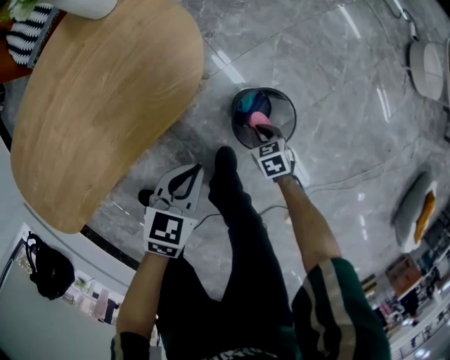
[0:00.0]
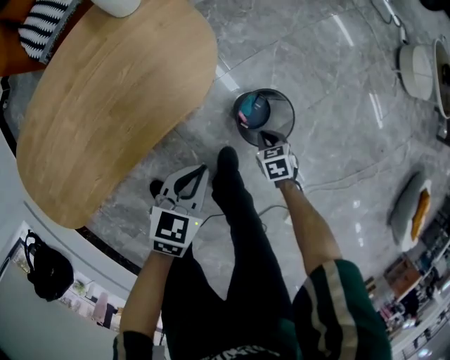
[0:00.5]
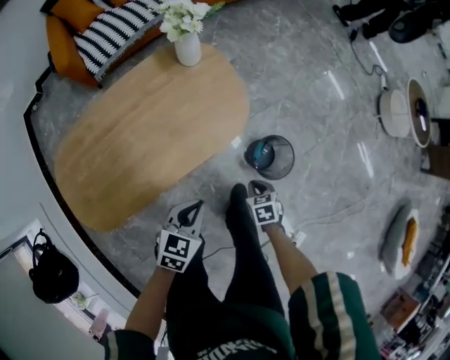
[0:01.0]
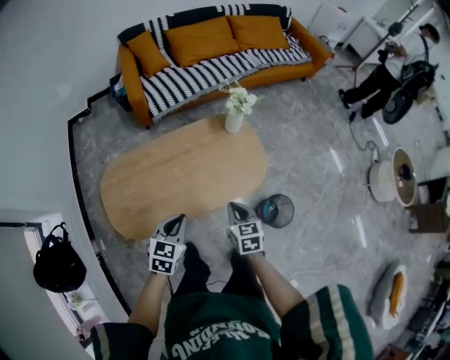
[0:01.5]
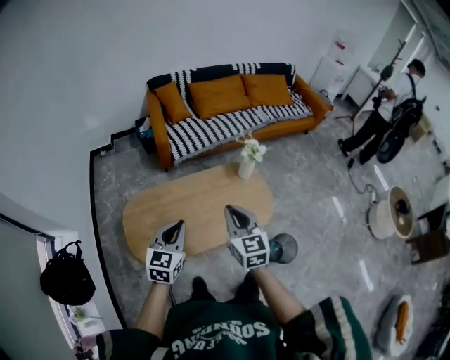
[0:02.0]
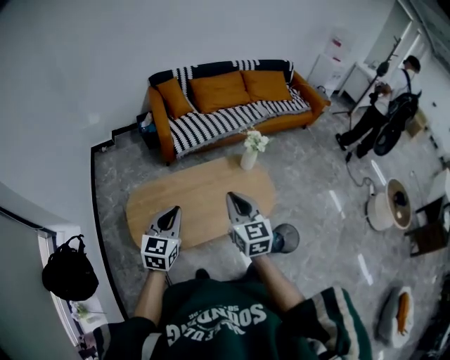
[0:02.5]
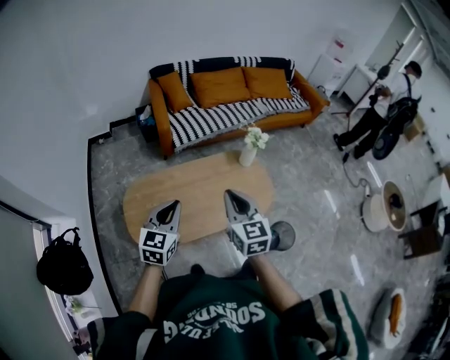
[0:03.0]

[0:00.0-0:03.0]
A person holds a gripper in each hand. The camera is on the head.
0:00.0 to 0:01.5: The left gripper goes roughly 40 cm to the left and upward, and changes its angle by approximately 30 degrees. Meanwhile the right gripper moves upward and to the left, roughly 60 cm, and turns by about 30 degrees.
0:01.5 to 0:03.0: The grippers both shift upward and to the left by some 25 cm. The right gripper changes its angle by approximately 30 degrees. Meanwhile the left gripper rotates some 20 degrees.

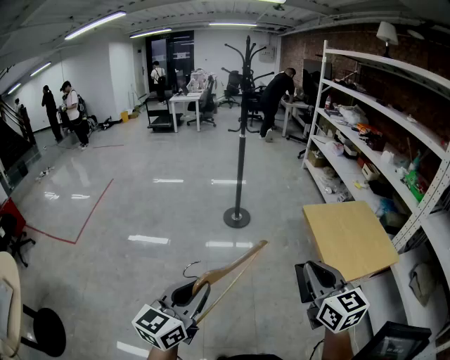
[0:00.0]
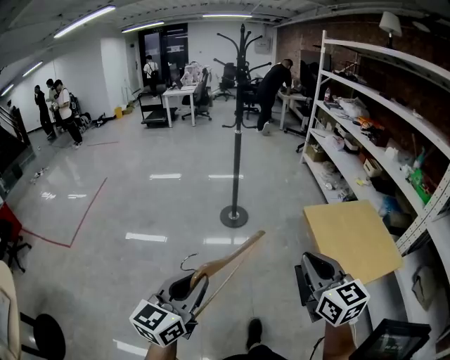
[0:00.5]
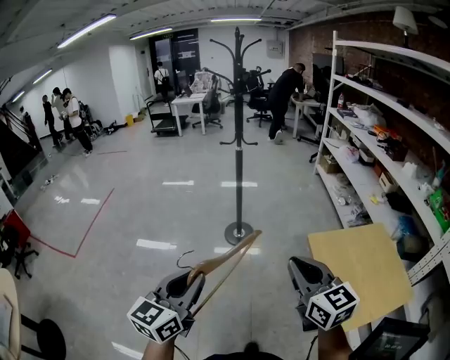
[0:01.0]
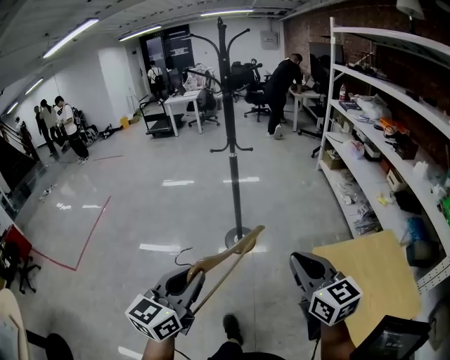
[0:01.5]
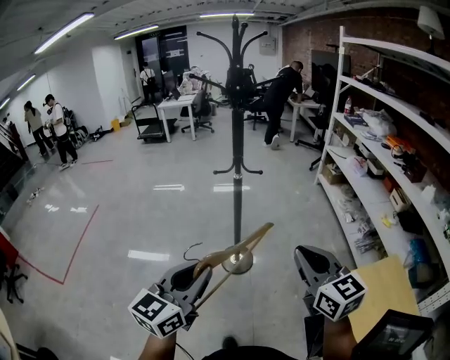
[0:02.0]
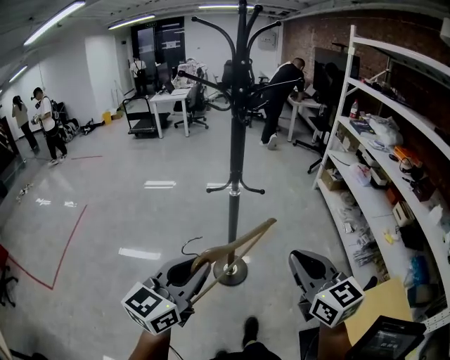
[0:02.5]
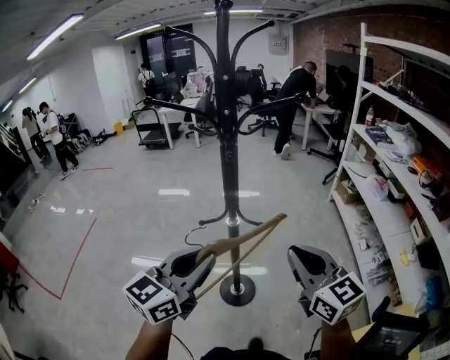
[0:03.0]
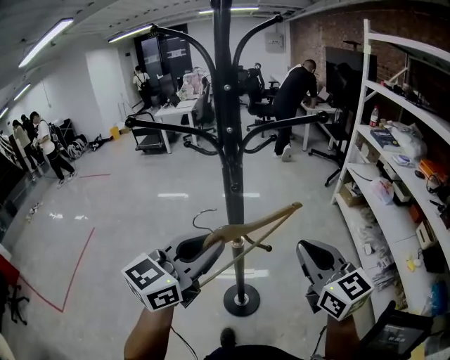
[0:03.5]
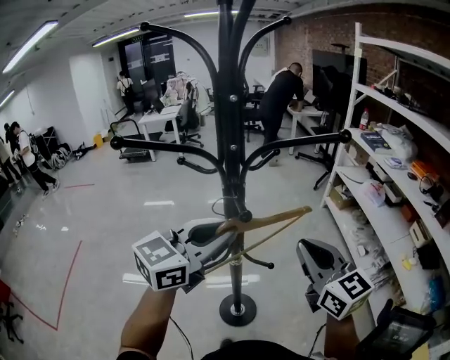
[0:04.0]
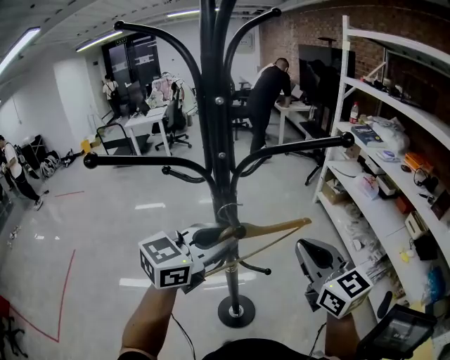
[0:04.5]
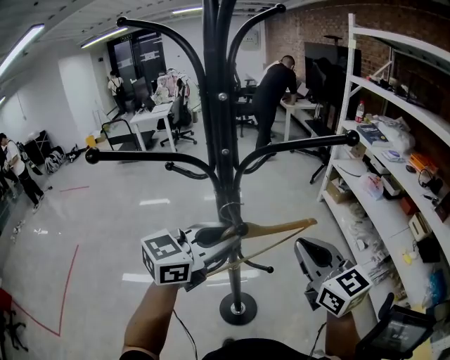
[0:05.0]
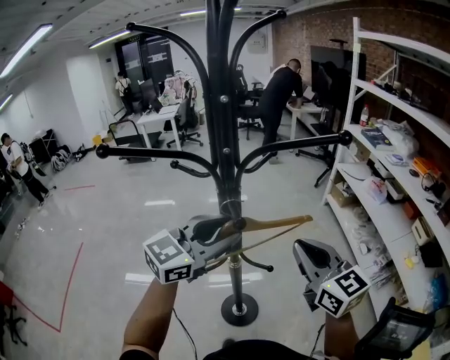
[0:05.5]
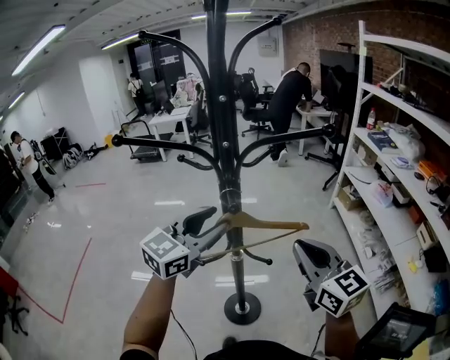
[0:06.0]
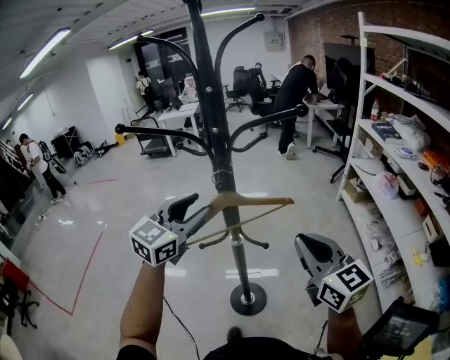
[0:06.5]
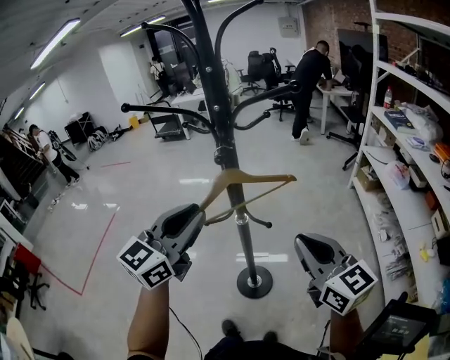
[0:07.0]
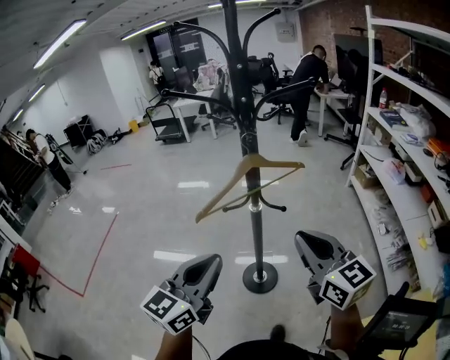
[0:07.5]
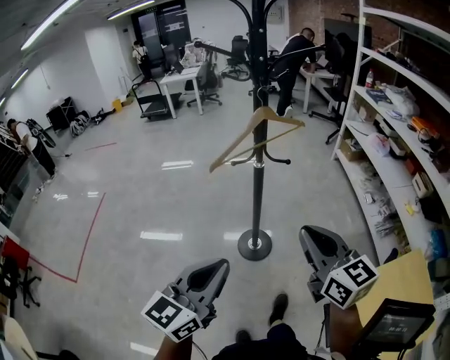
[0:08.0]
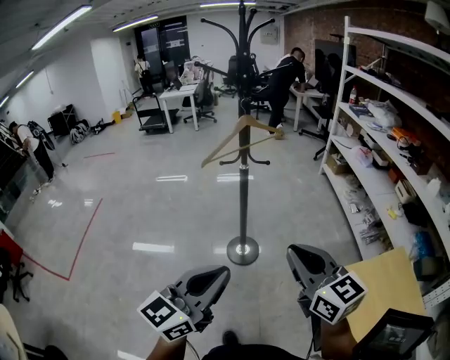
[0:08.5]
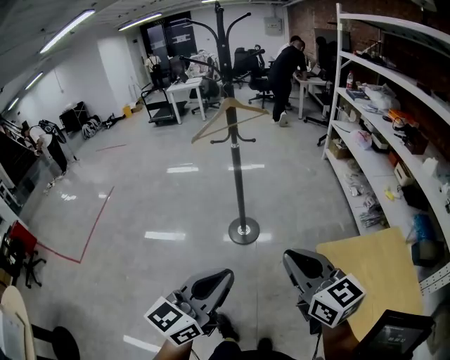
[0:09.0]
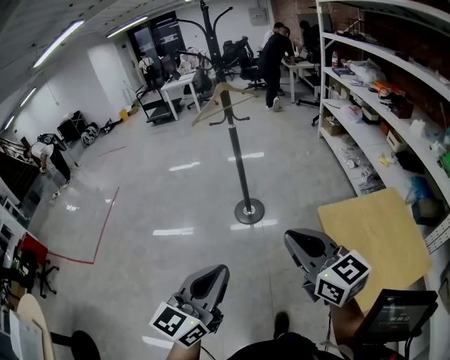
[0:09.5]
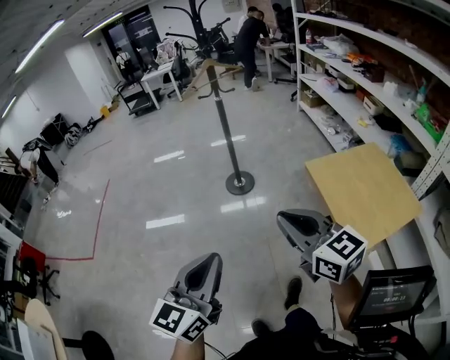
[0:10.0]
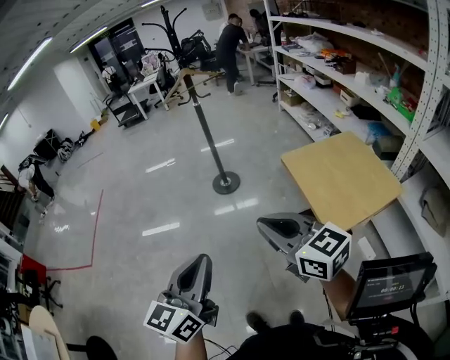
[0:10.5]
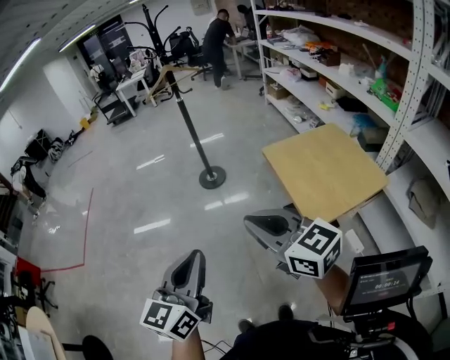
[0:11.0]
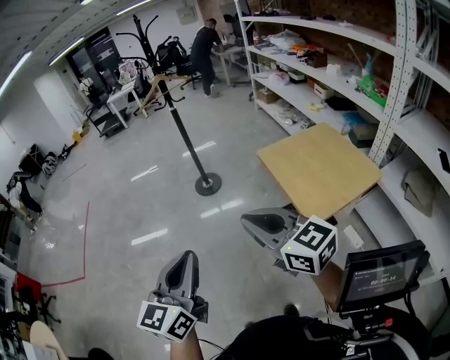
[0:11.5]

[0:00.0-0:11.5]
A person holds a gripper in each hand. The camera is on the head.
0:00.0 to 0:02.0: The two grippers travel together, forward, about 50 cm.
0:02.0 to 0:04.0: The two grippers go about 40 cm forward. The left gripper swivels roughly 20 degrees.
0:04.0 to 0:06.0: The left gripper ends up about 5 cm from where it was, and opens up.
0:06.0 to 0:07.5: The left gripper travels backward by approximately 25 cm, turns by about 20 degrees, and closes its fingers, while the right gripper is displaced backward by approximately 15 cm.
0:07.5 to 0:09.5: Both grippers are carried backward, about 50 cm.
0:09.5 to 0:11.5: Both grippers travel together backward, some 25 cm.

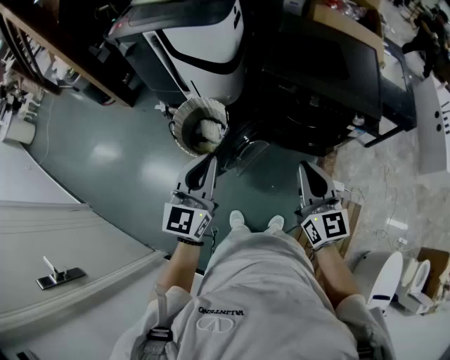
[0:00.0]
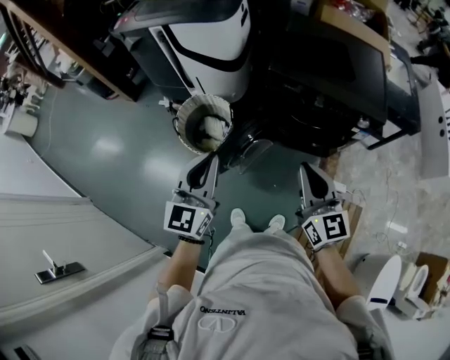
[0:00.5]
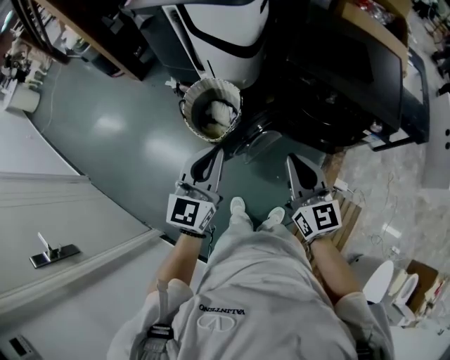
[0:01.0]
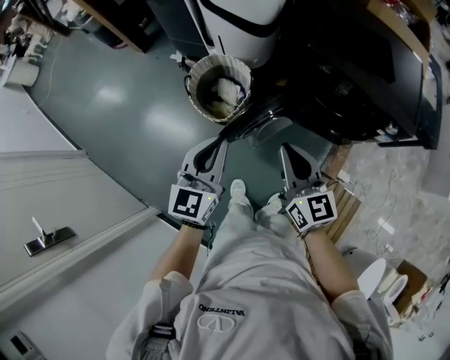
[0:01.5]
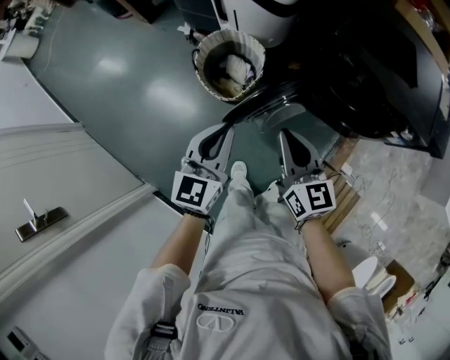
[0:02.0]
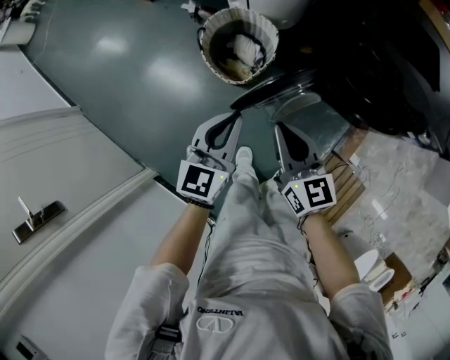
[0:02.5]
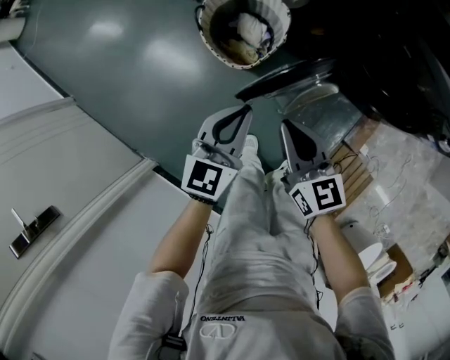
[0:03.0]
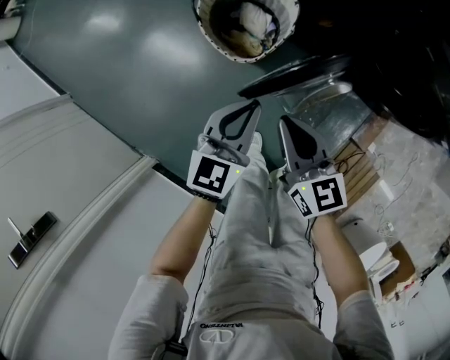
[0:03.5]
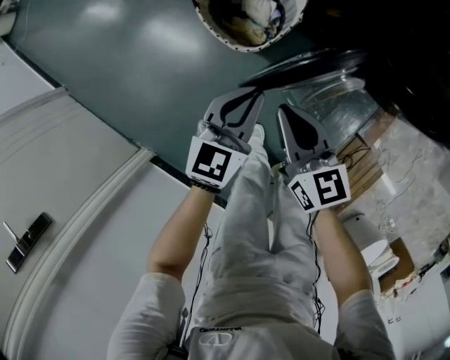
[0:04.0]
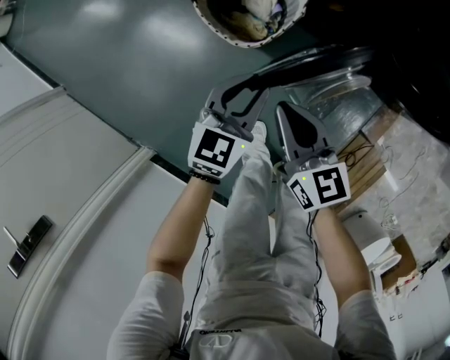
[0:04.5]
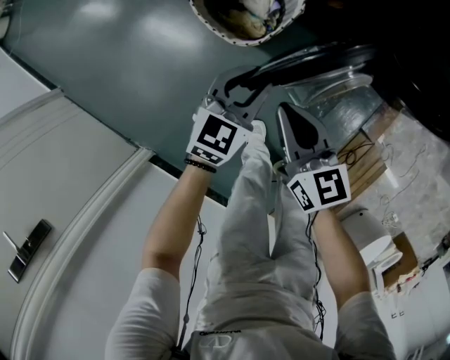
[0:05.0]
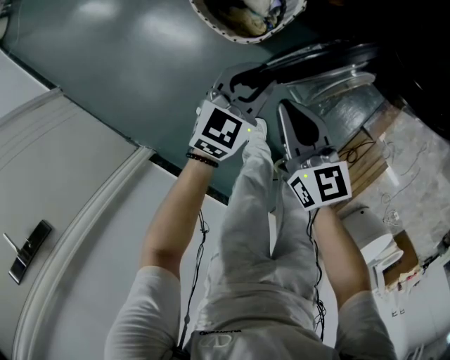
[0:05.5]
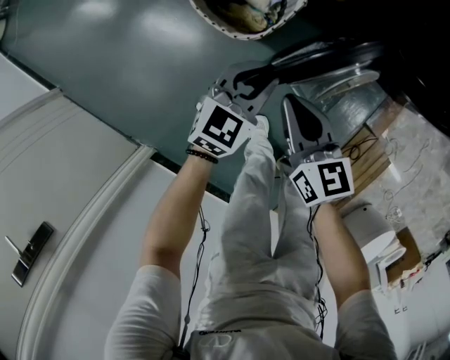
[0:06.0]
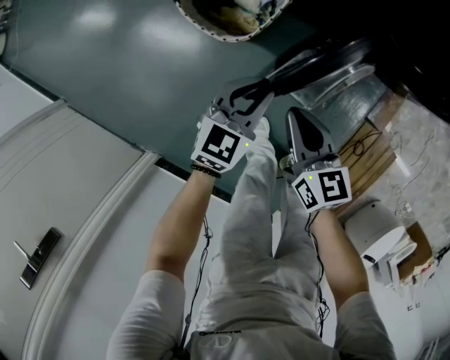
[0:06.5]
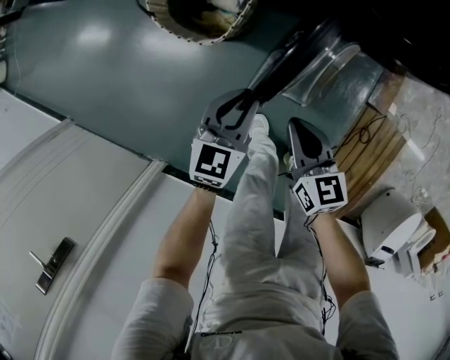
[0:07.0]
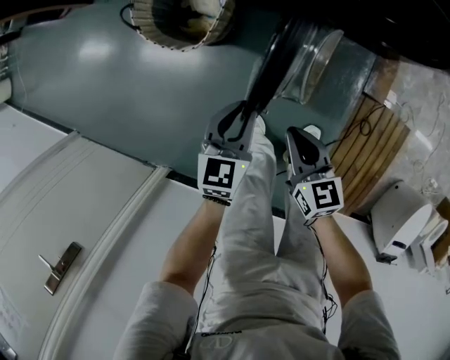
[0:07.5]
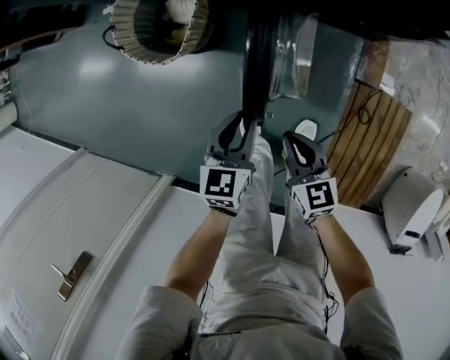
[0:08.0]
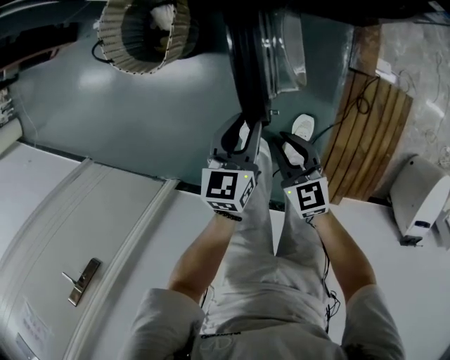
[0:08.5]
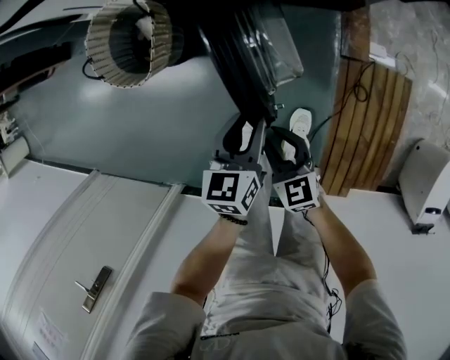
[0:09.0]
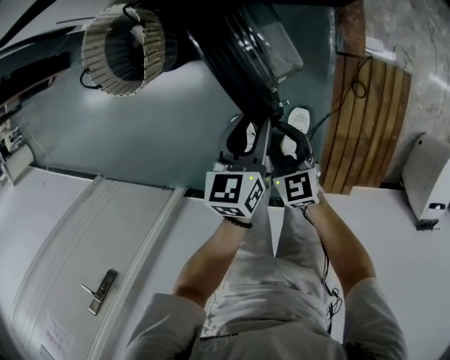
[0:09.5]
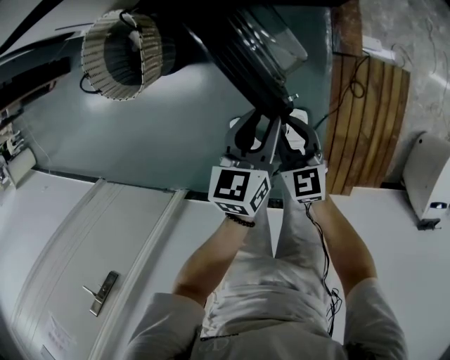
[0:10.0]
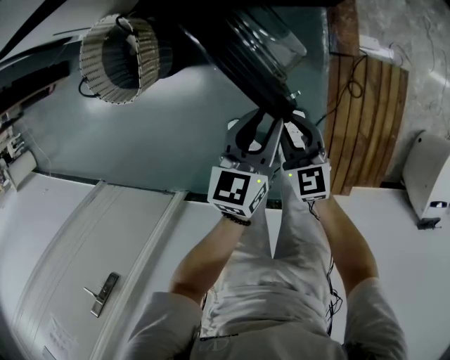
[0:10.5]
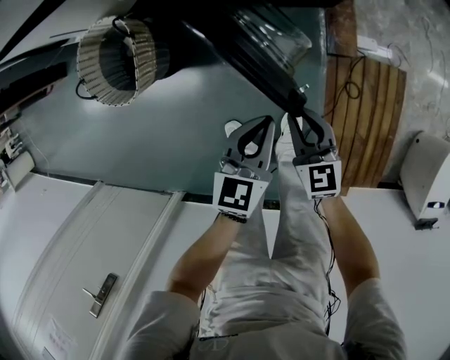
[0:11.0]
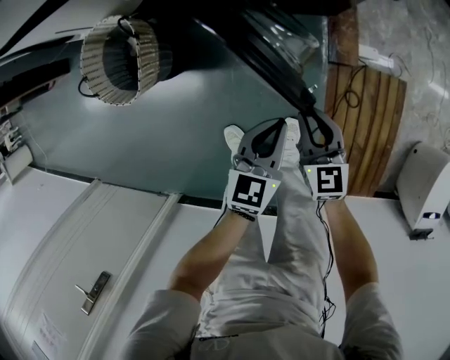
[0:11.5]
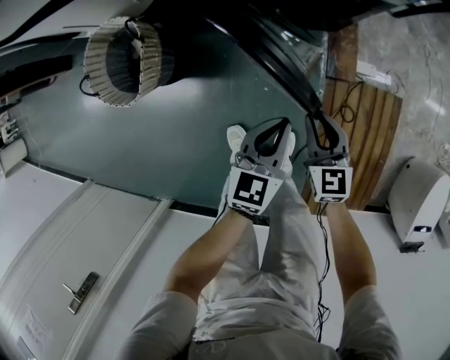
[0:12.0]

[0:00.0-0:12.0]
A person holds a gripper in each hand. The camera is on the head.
0:00.0 to 0:02.0: The left gripper shifts approximately 15 cm downward and to the left, while the right gripper shifts some 20 cm to the left, downward and forward, and changes its angle by roughly 20 degrees.
0:02.0 to 0:04.0: The right gripper moves downward and to the left, some 25 cm. Meanwhile the left gripper heads downward, covering approximately 25 cm.
0:04.0 to 0:06.0: Both grippers travel together downward, roughly 5 cm.
0:06.0 to 0:08.0: Both grippers travel together to the right and backward, some 25 cm.
0:08.0 to 0:10.0: The right gripper goes about 10 cm to the right; the left gripper shifts roughly 20 cm to the right.
0:10.0 to 0:12.0: The left gripper moves to the right, about 5 cm, and closes its fingers. The right gripper travels to the right and forward by approximately 15 cm.
